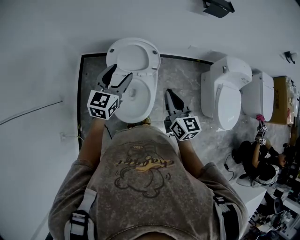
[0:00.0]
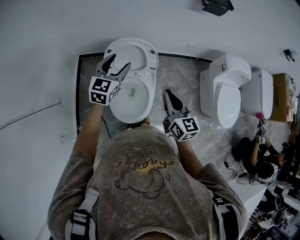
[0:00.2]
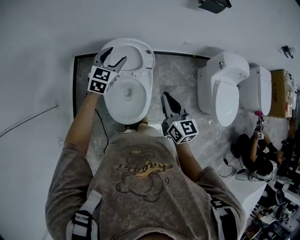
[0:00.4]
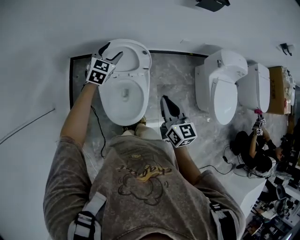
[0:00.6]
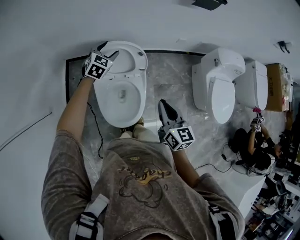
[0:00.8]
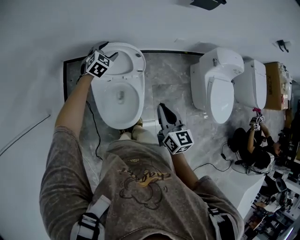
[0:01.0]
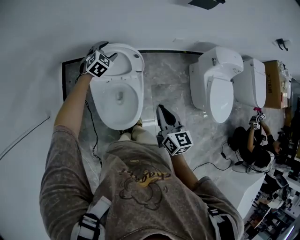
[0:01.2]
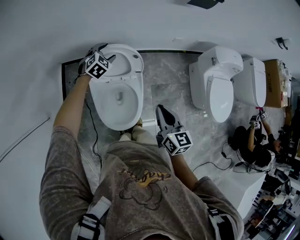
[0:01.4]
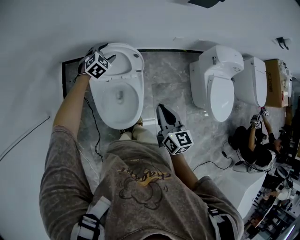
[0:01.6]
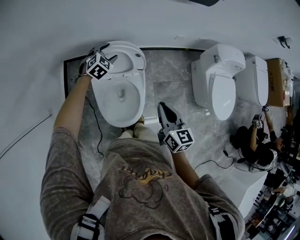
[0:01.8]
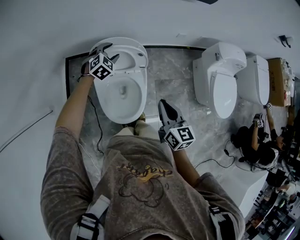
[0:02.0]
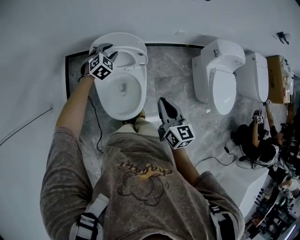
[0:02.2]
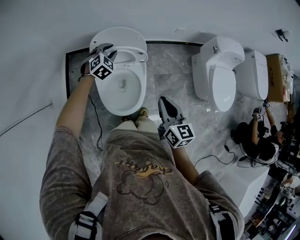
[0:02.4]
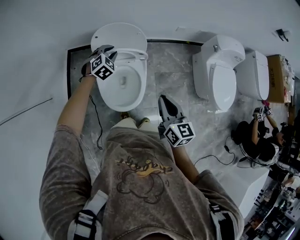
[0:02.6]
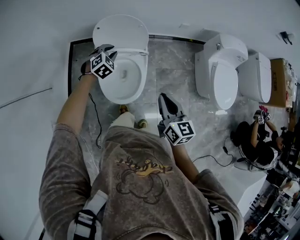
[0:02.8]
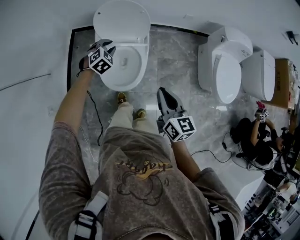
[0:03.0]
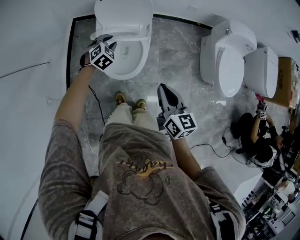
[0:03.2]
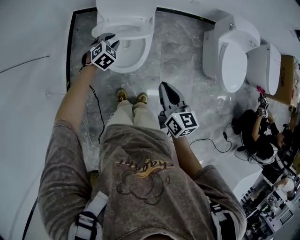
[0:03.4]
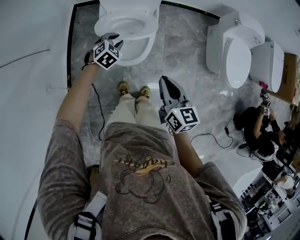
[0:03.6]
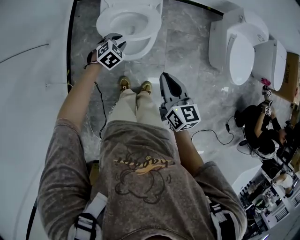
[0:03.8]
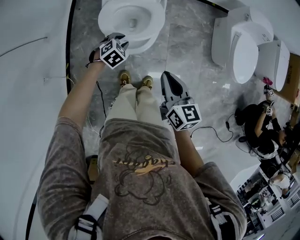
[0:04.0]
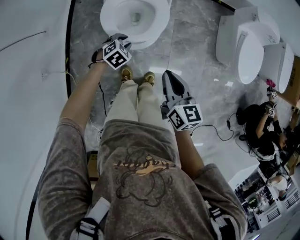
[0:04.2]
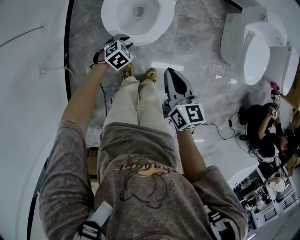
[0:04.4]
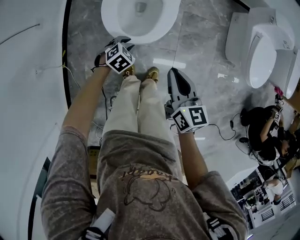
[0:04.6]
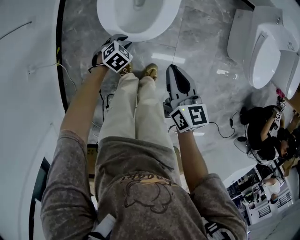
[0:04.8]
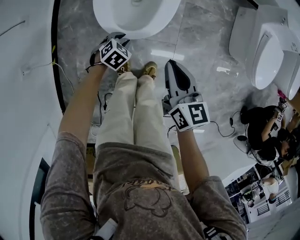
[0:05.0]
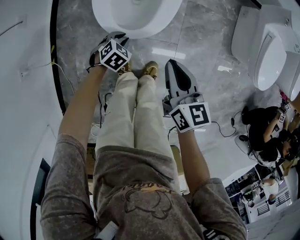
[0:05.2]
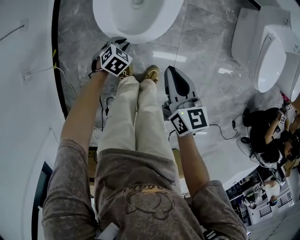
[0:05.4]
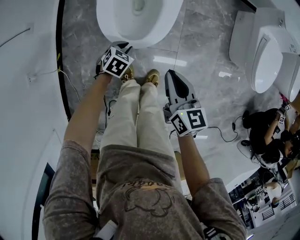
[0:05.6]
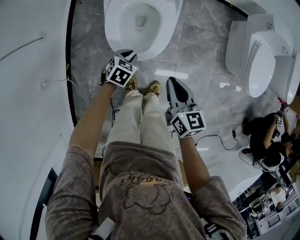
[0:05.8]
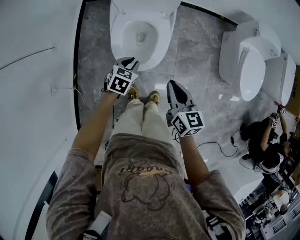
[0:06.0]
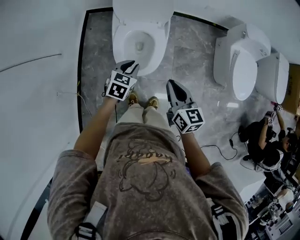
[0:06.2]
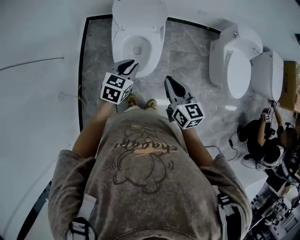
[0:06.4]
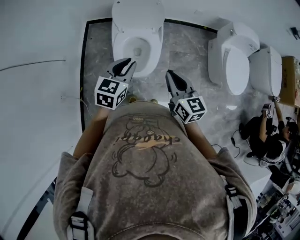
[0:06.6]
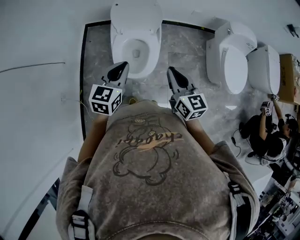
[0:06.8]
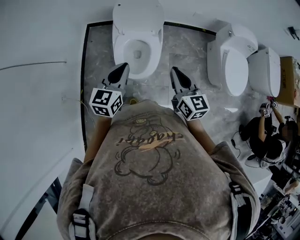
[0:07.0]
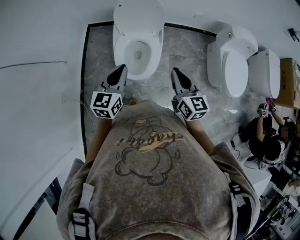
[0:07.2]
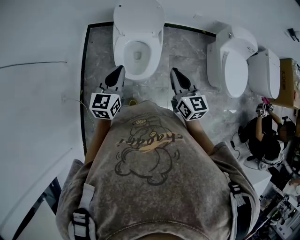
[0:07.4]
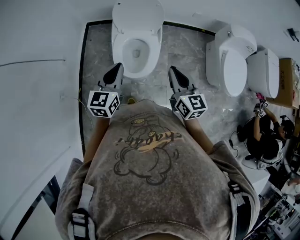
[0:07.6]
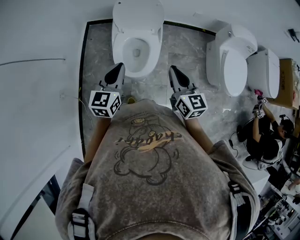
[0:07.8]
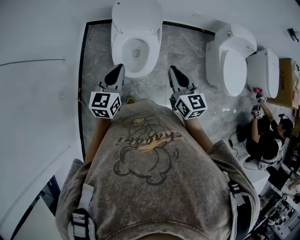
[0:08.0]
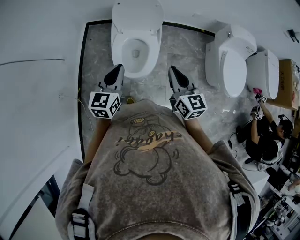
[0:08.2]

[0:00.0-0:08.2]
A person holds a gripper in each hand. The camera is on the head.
0:00.0 to 0:01.6: The left gripper is displaced forward and downward by approximately 30 cm, and tips its fingers downward by about 30 degrees; the right gripper goes approximately 5 cm downward.
0:01.6 to 0:03.2: The grippers both shift backward by approximately 25 cm. The left gripper closes its fingers.
0:03.2 to 0:05.0: The left gripper goes approximately 40 cm downward and backward, and swivels about 30 degrees. The right gripper is displaced downward by some 25 cm.
0:05.0 to 0:06.6: The left gripper shifts roughly 50 cm upward, and tilts its fingers about 40 degrees upward; the right gripper goes some 25 cm upward.
0:06.6 to 0:08.2: The grippers stay close to where they were, moving slightly.

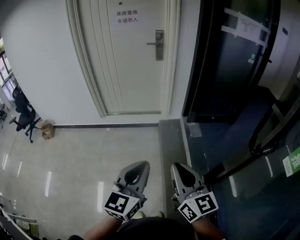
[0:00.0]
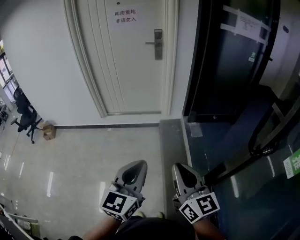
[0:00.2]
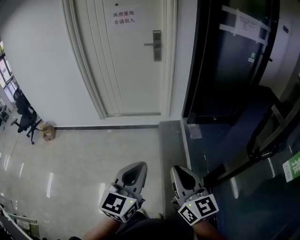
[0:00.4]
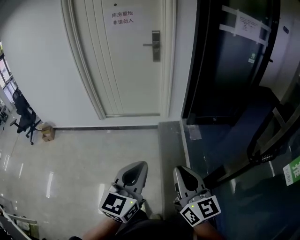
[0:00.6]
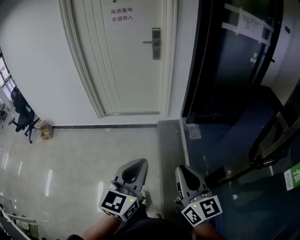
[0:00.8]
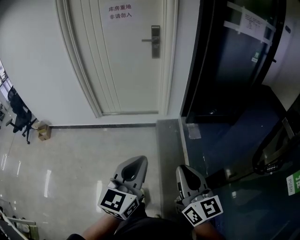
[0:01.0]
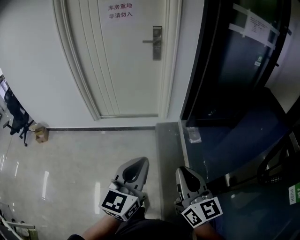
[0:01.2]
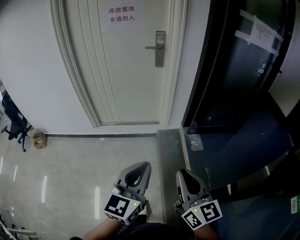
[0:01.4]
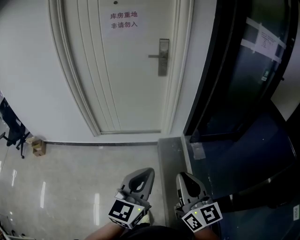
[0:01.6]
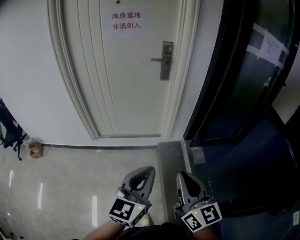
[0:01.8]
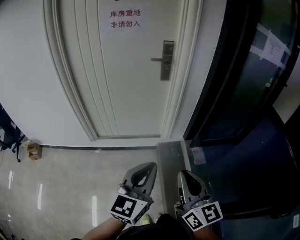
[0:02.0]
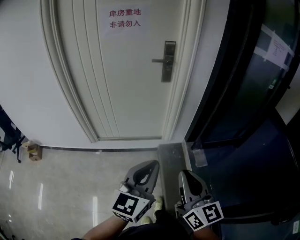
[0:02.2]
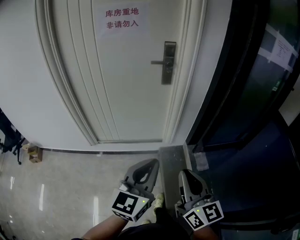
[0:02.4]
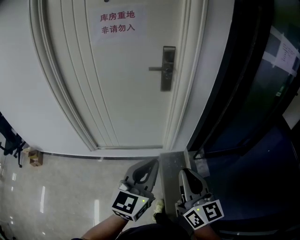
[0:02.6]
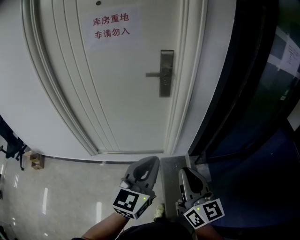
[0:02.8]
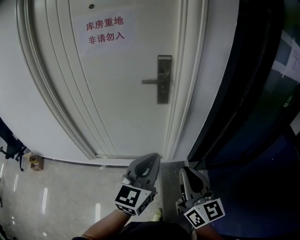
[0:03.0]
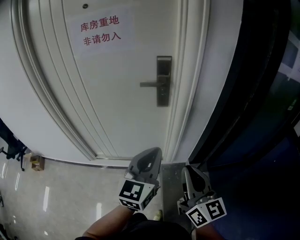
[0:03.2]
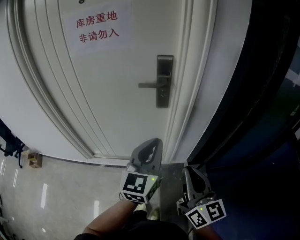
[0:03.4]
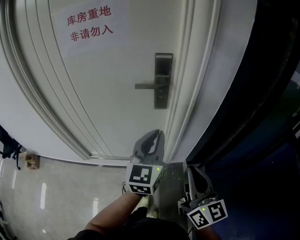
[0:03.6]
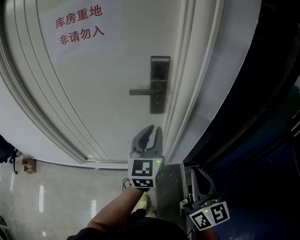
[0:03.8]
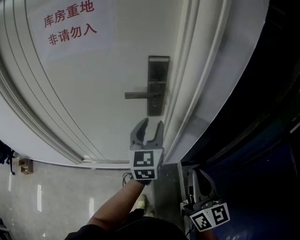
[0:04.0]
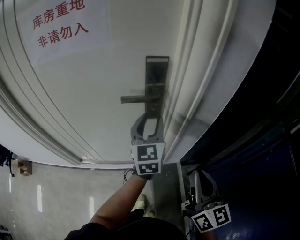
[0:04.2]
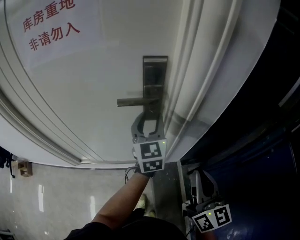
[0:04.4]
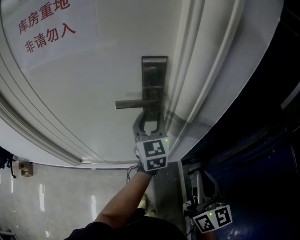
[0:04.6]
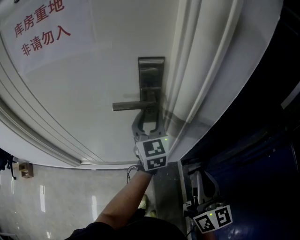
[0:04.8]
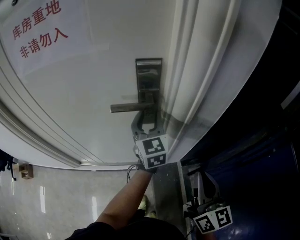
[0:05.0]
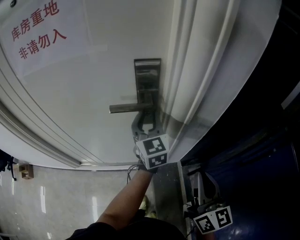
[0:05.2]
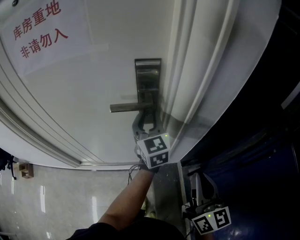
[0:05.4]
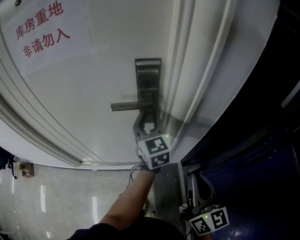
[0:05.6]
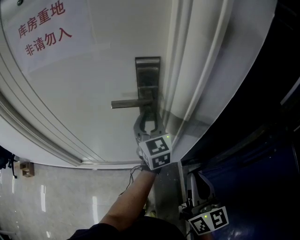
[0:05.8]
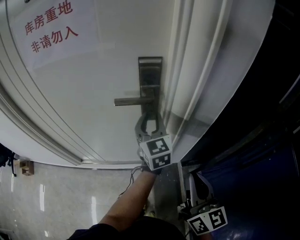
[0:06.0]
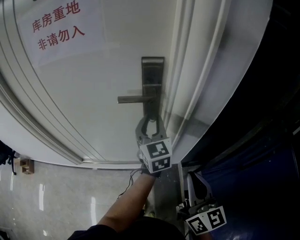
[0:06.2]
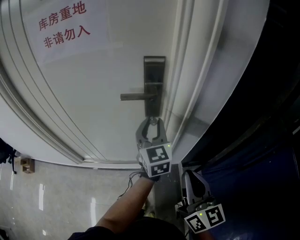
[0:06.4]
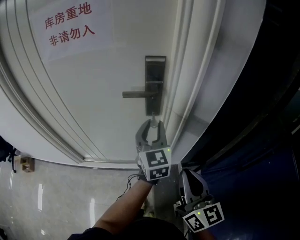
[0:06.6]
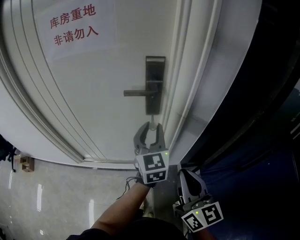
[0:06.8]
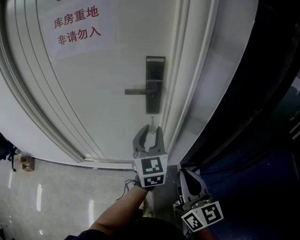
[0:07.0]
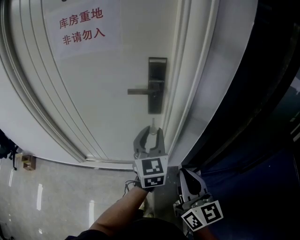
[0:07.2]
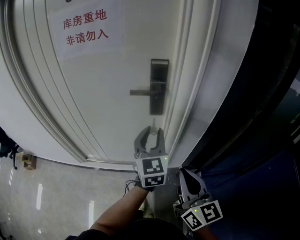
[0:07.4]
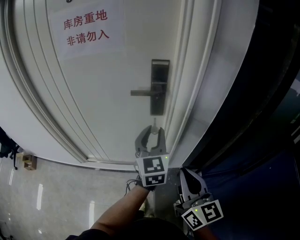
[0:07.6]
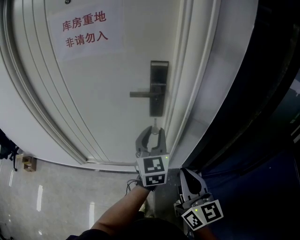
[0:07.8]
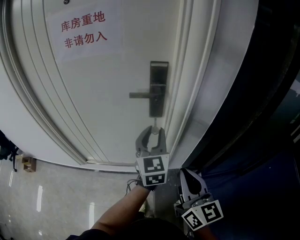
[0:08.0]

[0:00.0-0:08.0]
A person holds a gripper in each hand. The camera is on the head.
0:00.0 to 0:01.6: The grippers both shift forward by roughly 25 cm.
0:01.6 to 0:03.2: Both grippers travel together forward, about 40 cm.
0:03.2 to 0:04.8: The left gripper shifts approximately 35 cm forward, changes its angle by approximately 20 degrees, and opens, while the right gripper heads forward, covering approximately 20 cm.
0:04.8 to 0:06.4: The right gripper ends up about 5 cm from where it was. Meanwhile the left gripper shifts roughly 10 cm backward.
0:06.4 to 0:08.0: The right gripper shifts by roughly 5 cm; the left gripper moves backward, approximately 10 cm.

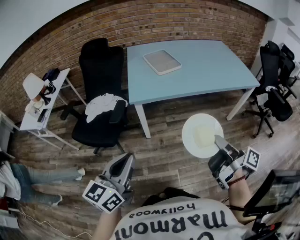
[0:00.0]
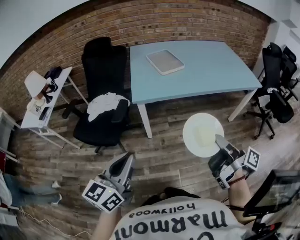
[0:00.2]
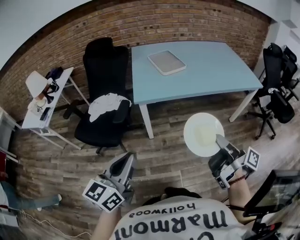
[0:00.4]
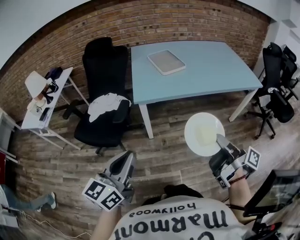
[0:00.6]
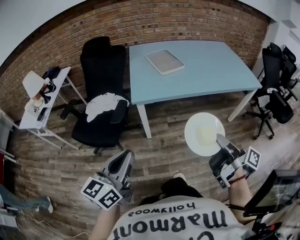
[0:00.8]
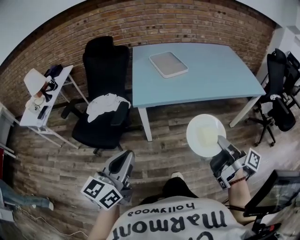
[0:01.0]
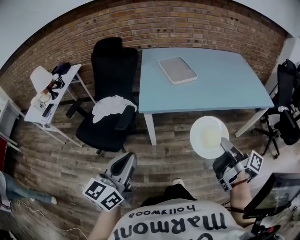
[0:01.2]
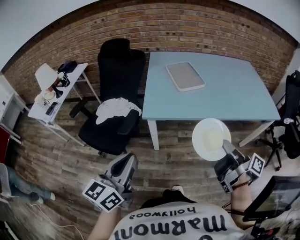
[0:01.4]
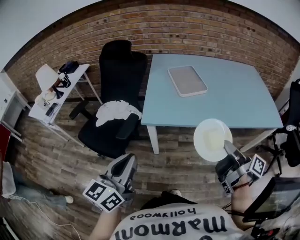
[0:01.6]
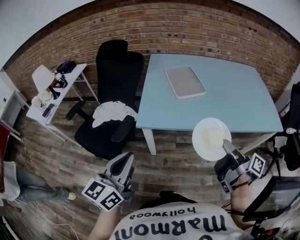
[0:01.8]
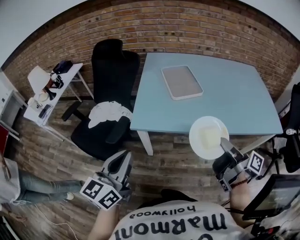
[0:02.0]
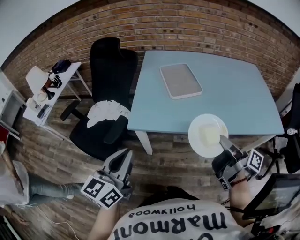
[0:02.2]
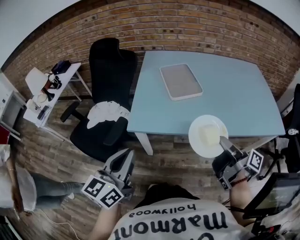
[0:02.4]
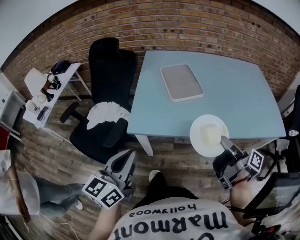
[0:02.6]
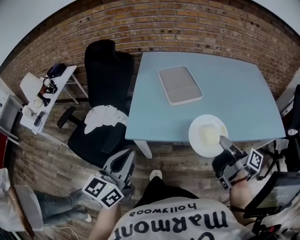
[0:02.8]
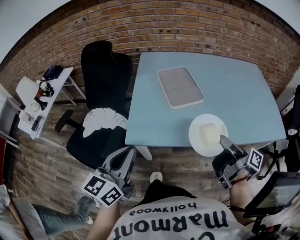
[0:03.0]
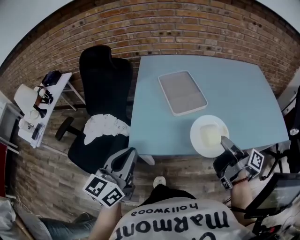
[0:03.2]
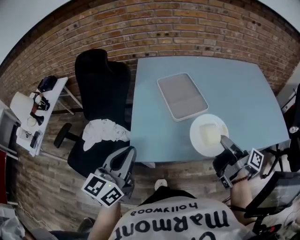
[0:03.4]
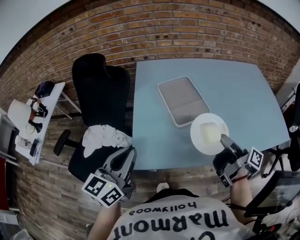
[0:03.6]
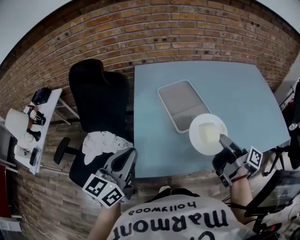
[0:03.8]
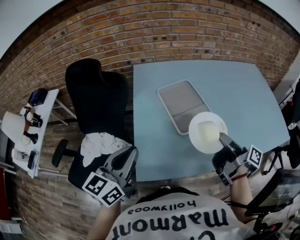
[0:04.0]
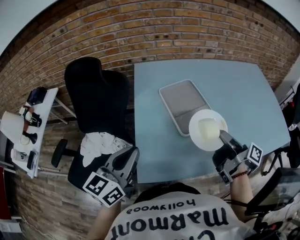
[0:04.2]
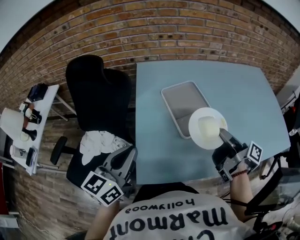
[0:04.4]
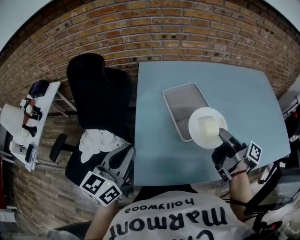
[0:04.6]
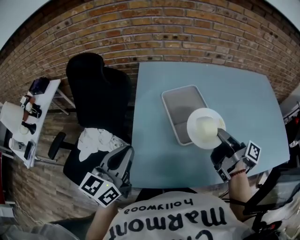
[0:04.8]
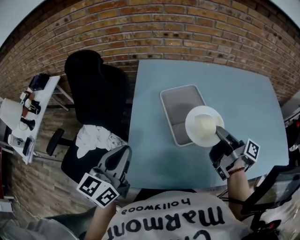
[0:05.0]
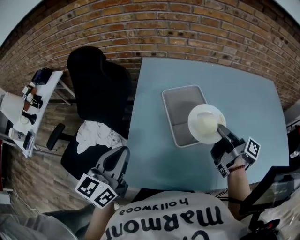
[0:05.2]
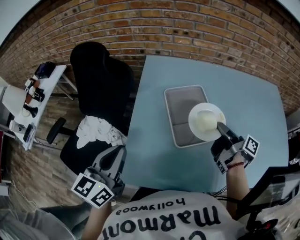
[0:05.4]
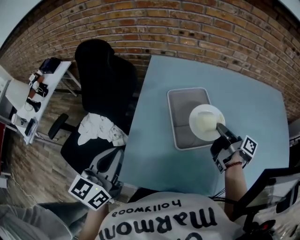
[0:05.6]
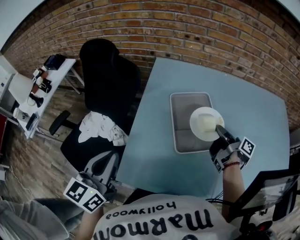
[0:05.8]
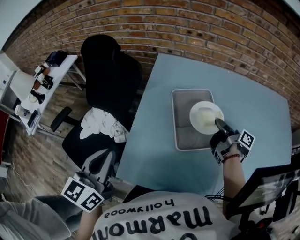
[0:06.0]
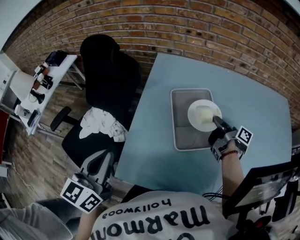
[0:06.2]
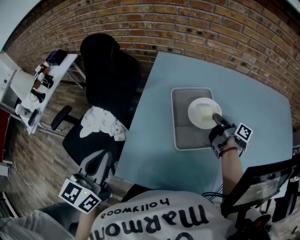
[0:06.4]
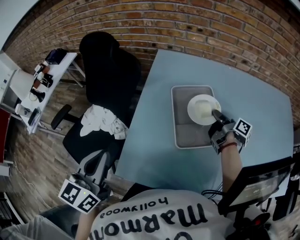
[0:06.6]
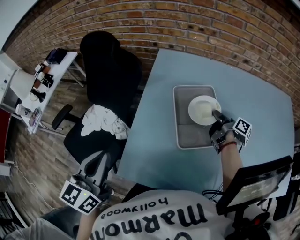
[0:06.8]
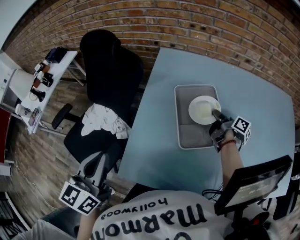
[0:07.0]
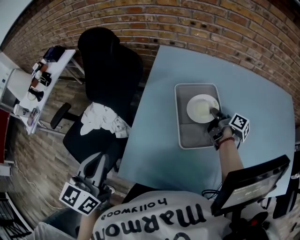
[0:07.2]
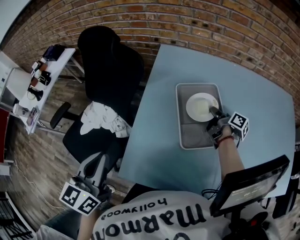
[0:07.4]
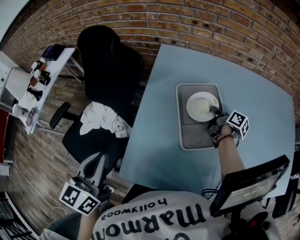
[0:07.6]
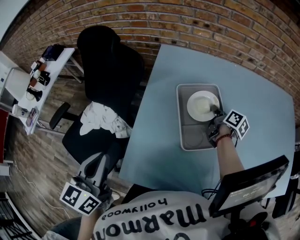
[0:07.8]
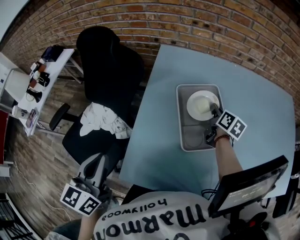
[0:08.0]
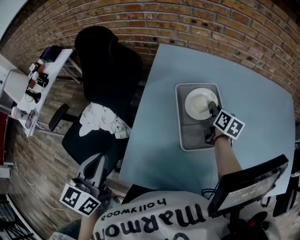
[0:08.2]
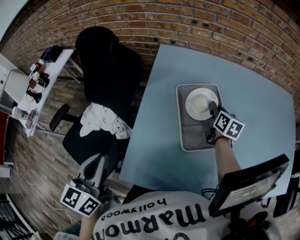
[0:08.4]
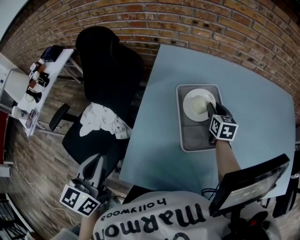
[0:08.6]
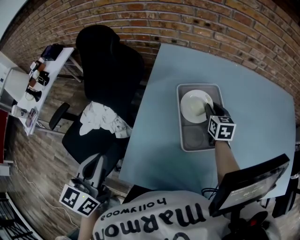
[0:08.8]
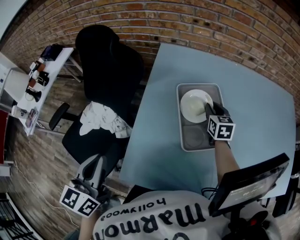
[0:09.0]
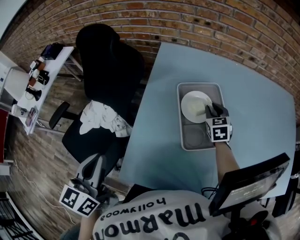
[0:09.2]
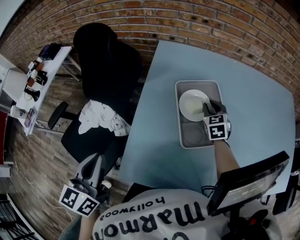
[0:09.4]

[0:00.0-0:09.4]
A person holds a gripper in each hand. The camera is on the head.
0:00.0 to 0:01.6: The grippers both shift forward by roughly 20 cm.
0:01.6 to 0:03.2: The two grippers go roughly 20 cm forward.
0:03.2 to 0:04.8: The two grippers go approximately 20 cm forward.
0:04.8 to 0:06.2: The right gripper shifts roughly 20 cm forward and downward. The left gripper turns by some 20 degrees.
0:06.2 to 0:07.8: The right gripper goes some 5 cm forward, and rotates some 30 degrees.
0:07.8 to 0:09.4: The right gripper rolls counterclockwise, seen from behind, by about 80 degrees.
